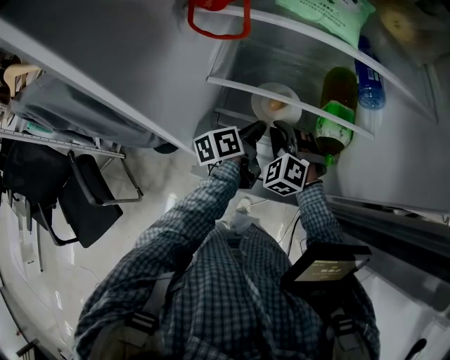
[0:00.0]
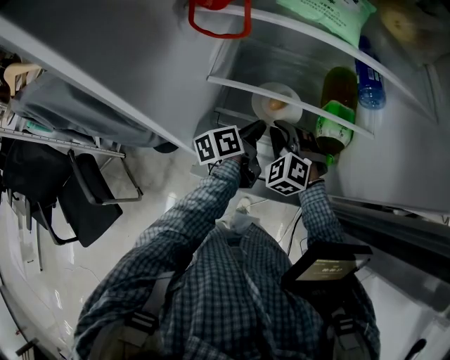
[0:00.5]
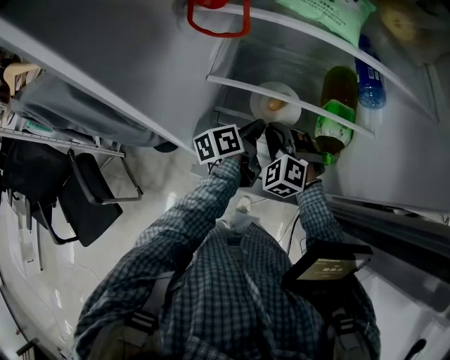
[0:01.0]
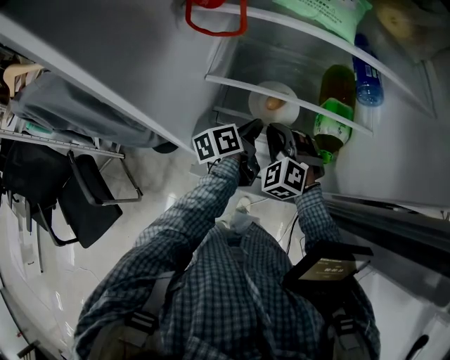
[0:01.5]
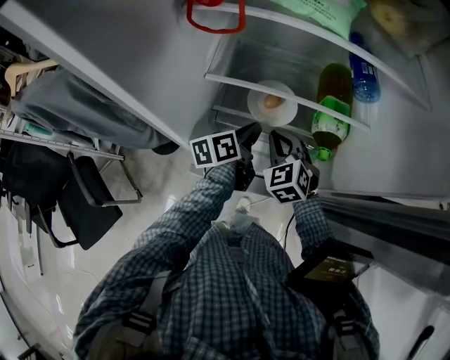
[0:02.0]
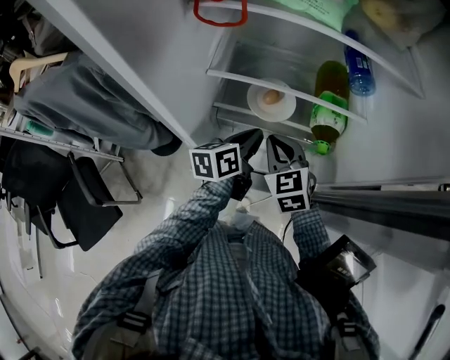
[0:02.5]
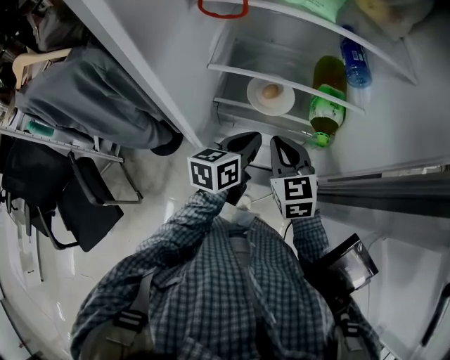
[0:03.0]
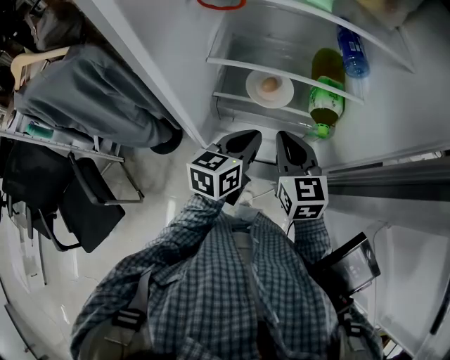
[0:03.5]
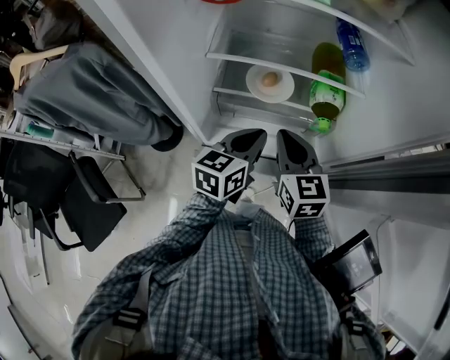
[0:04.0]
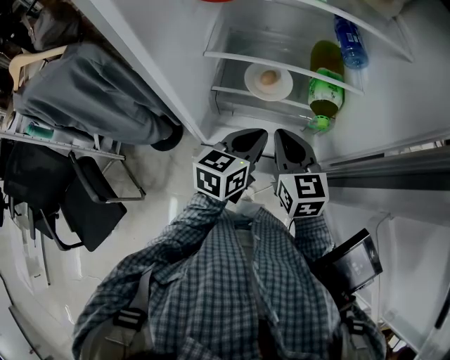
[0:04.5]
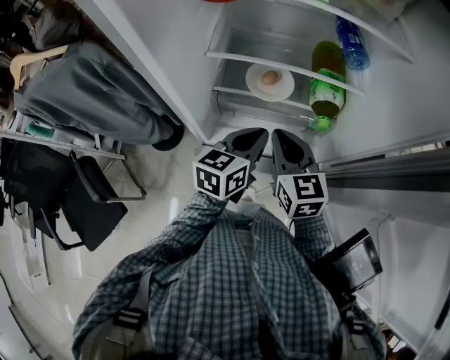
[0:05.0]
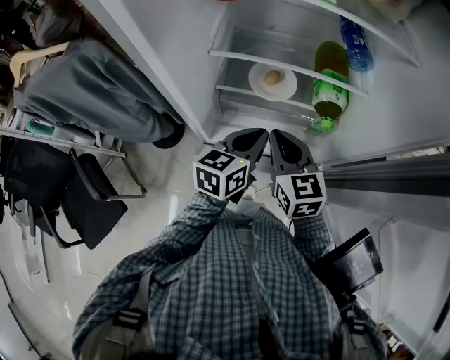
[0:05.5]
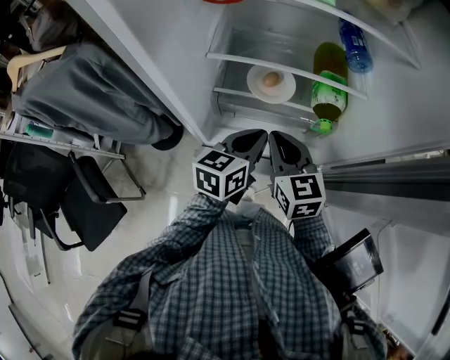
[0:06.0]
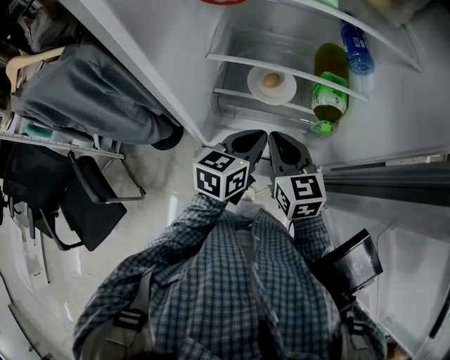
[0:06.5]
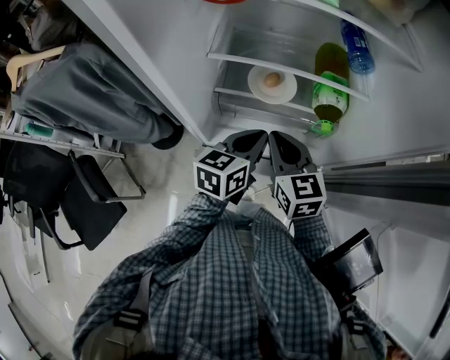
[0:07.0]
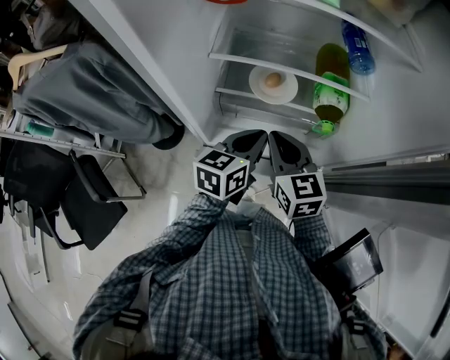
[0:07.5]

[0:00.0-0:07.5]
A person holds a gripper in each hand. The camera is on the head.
0:00.0 to 0:02.0: The right gripper turns by about 30 degrees.
0:02.0 to 0:04.0: The right gripper changes place by about 10 cm, and changes its angle by approximately 40 degrees.

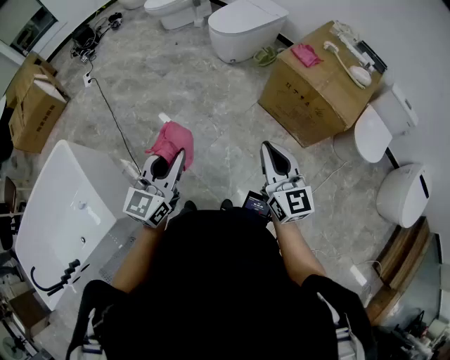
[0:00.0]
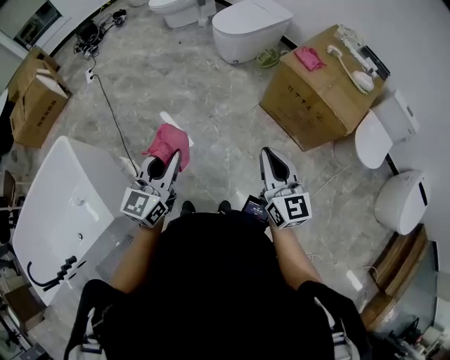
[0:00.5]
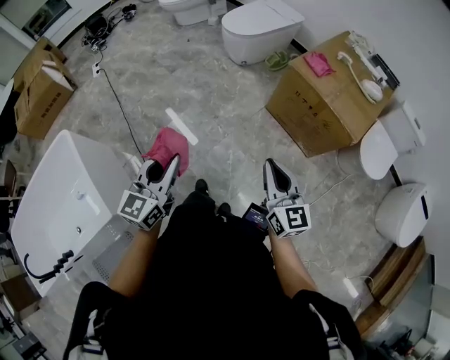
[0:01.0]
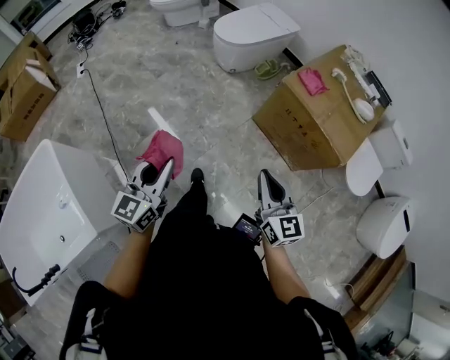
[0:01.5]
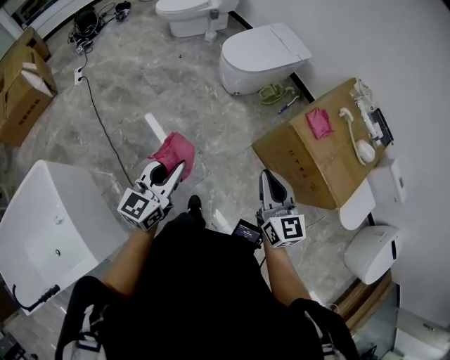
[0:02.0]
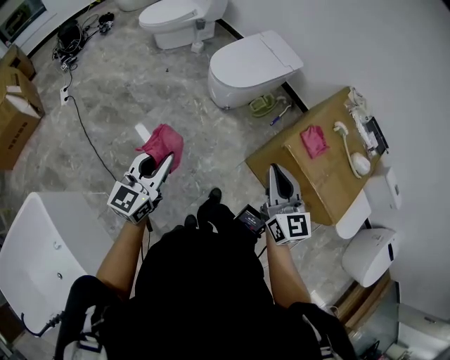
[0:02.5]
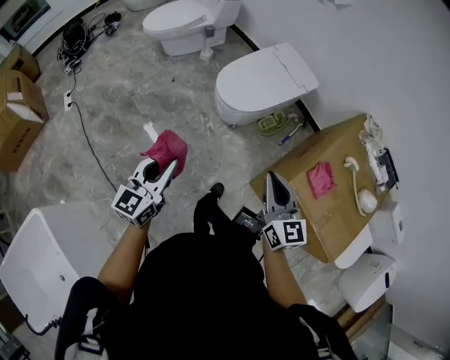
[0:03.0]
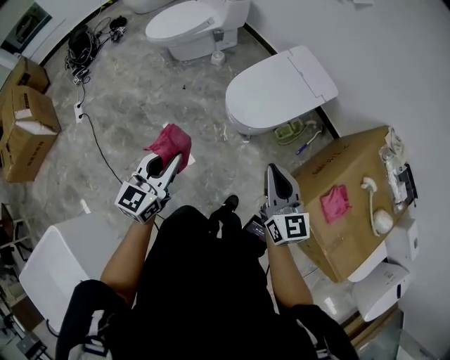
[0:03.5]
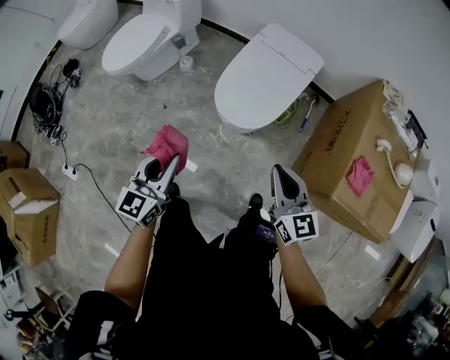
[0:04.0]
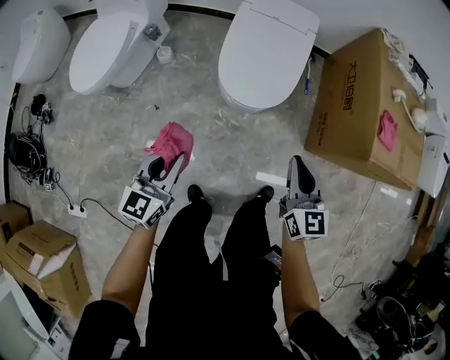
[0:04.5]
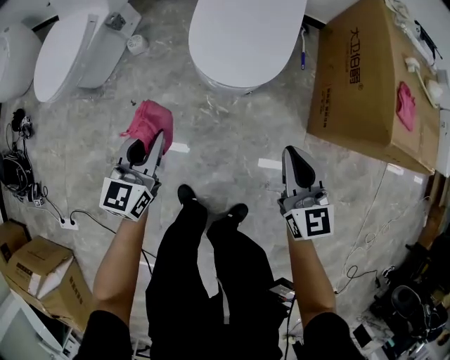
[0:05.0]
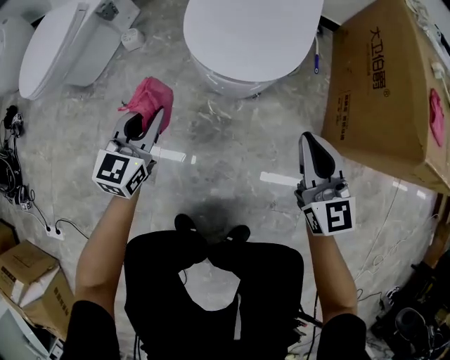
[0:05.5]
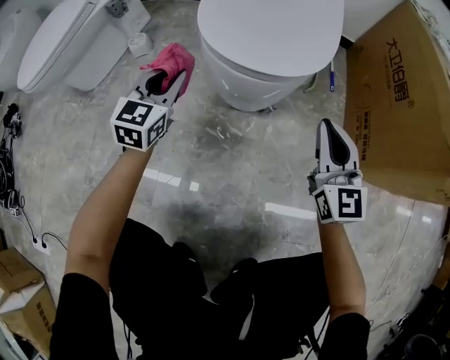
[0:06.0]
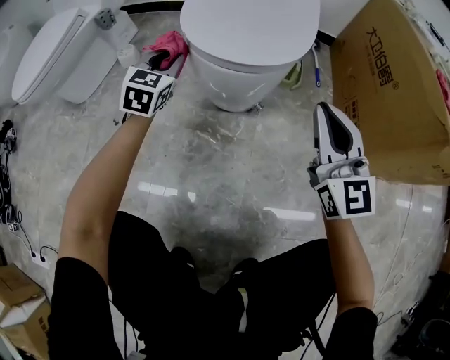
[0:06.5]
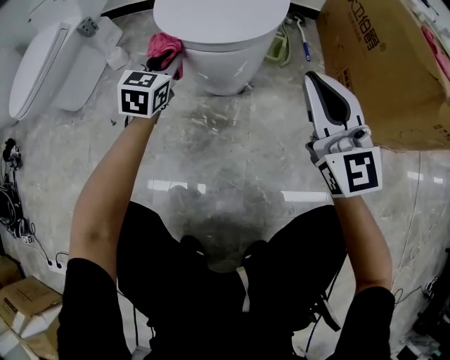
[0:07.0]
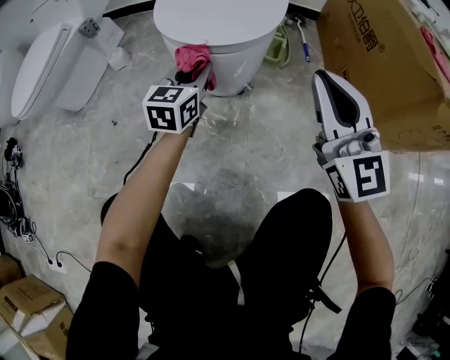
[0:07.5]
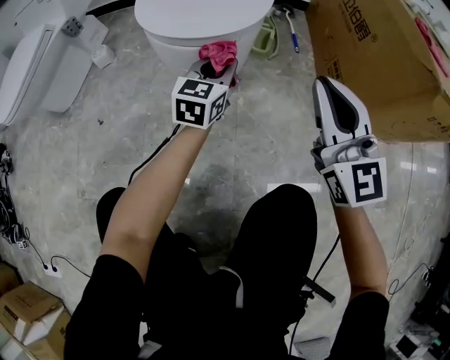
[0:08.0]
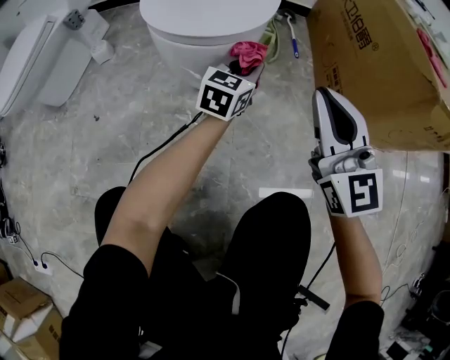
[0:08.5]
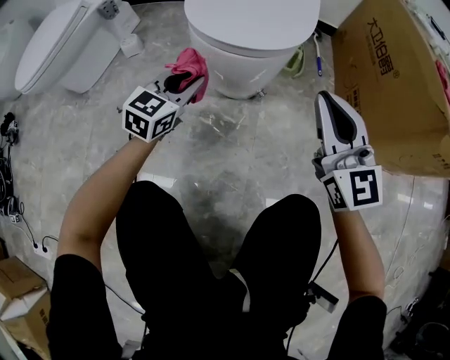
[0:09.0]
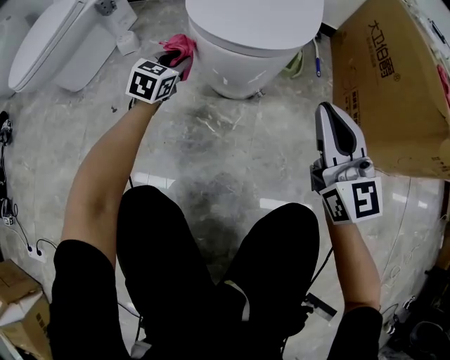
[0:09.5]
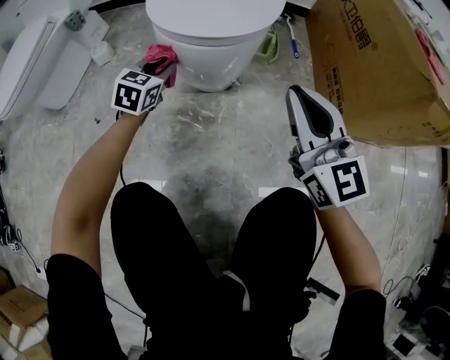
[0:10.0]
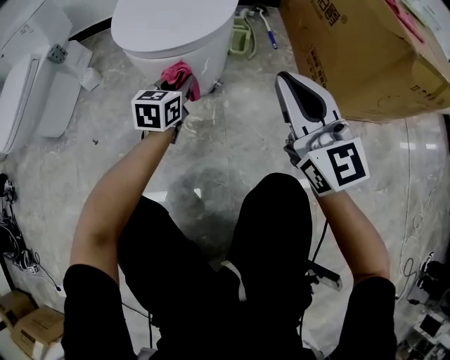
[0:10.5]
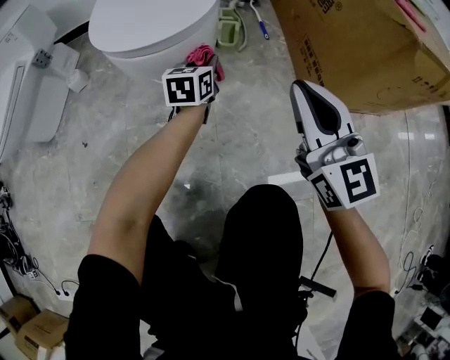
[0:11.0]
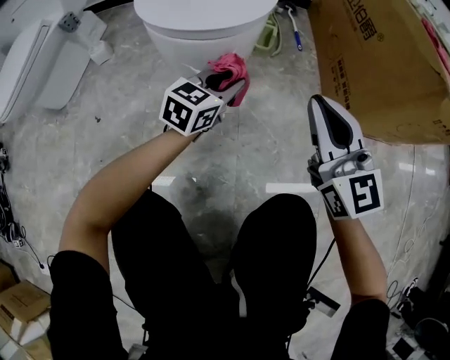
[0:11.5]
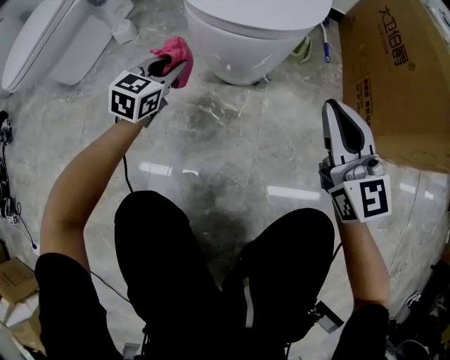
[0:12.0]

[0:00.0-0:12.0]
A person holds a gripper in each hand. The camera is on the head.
0:00.0 to 0:02.0: The grippers both shift forward by some 30 cm.
0:02.0 to 0:04.0: The pair of grippers is taken forward, roughly 50 cm. The left gripper swivels some 20 degrees.
0:04.0 to 0:06.0: The left gripper goes roughly 50 cm downward and forward, and changes its angle by about 20 degrees. Meanwhile the right gripper heads downward, covering approximately 40 cm, and rotates about 30 degrees.
0:06.0 to 0:08.0: The right gripper goes some 10 cm upward and backward. Meanwhile the left gripper is displaced to the right by roughly 25 cm.
0:08.0 to 0:10.0: The right gripper travels to the left by approximately 5 cm. The left gripper goes left and right, roughly 30 cm each way, reversing 2 times.
0:10.0 to 0:12.0: The right gripper goes to the right and returns, about 10 cm each way; the left gripper reaches about 25 cm to the right, then returns.

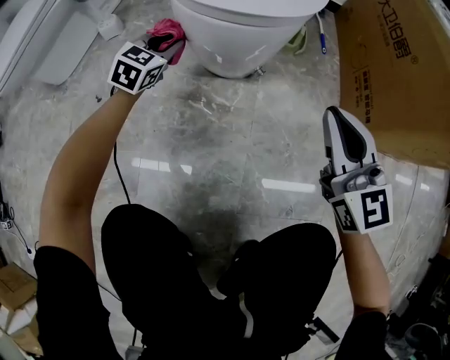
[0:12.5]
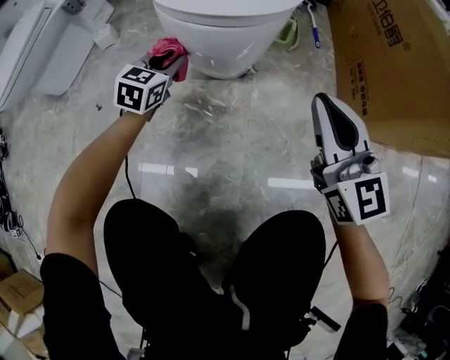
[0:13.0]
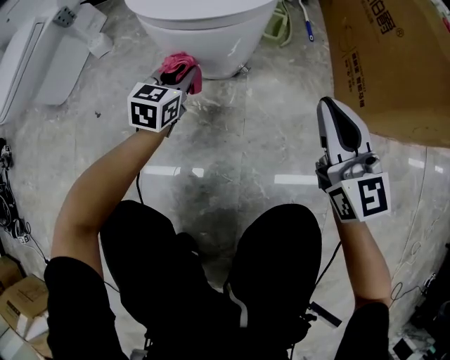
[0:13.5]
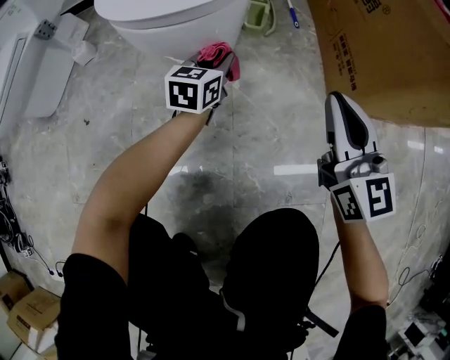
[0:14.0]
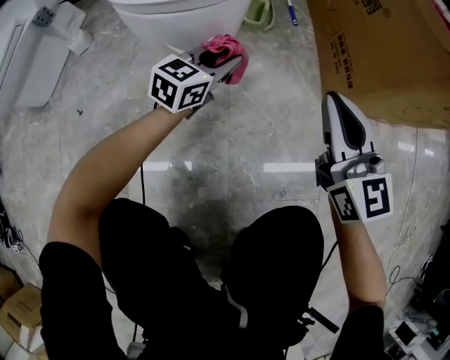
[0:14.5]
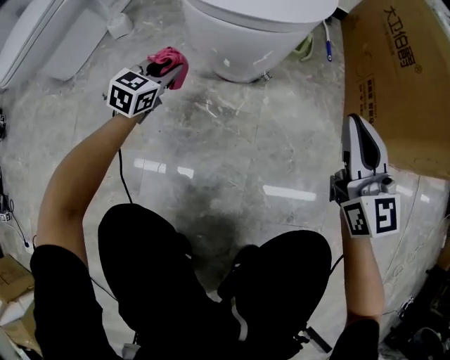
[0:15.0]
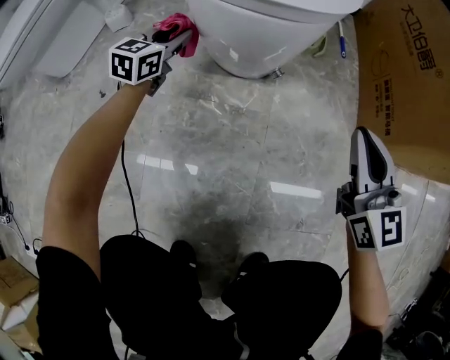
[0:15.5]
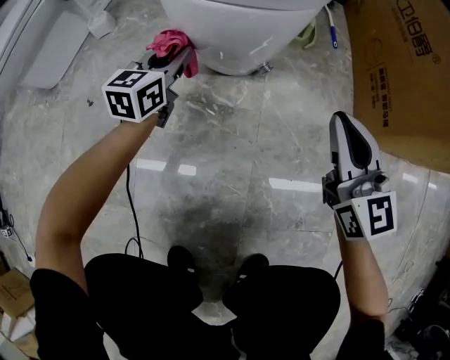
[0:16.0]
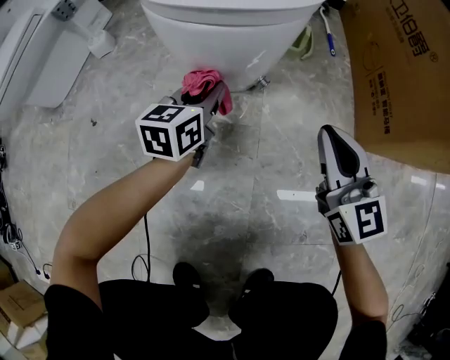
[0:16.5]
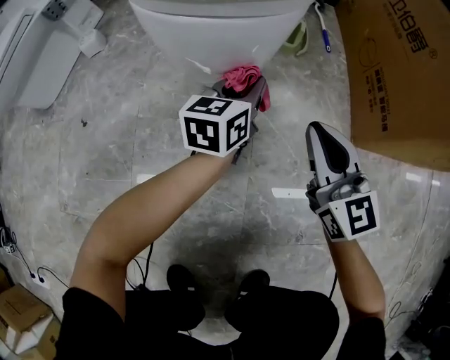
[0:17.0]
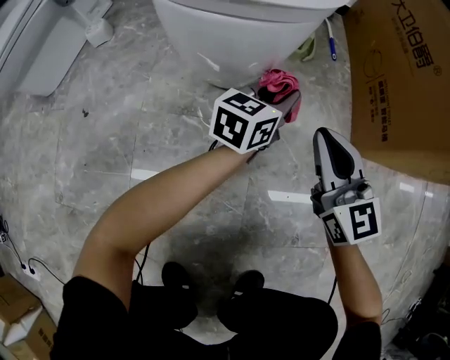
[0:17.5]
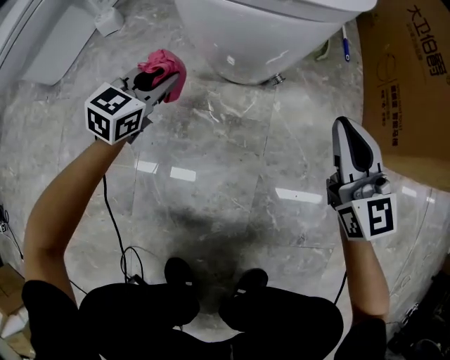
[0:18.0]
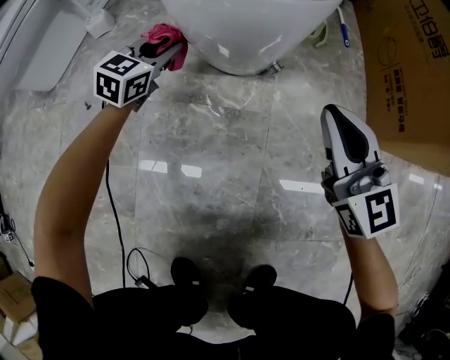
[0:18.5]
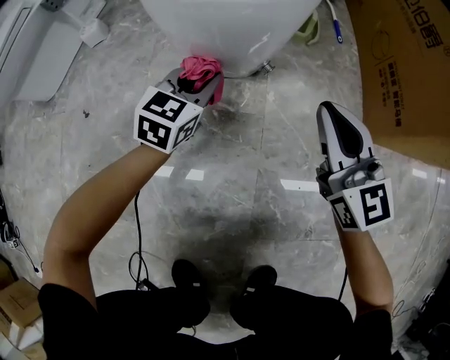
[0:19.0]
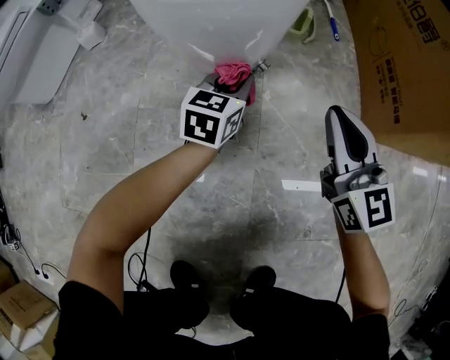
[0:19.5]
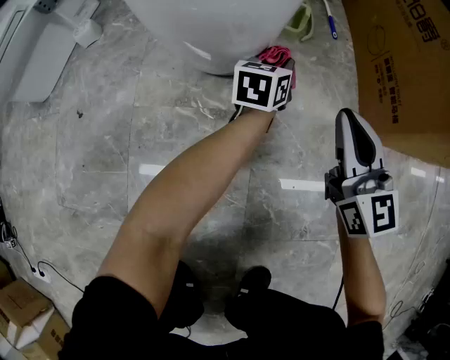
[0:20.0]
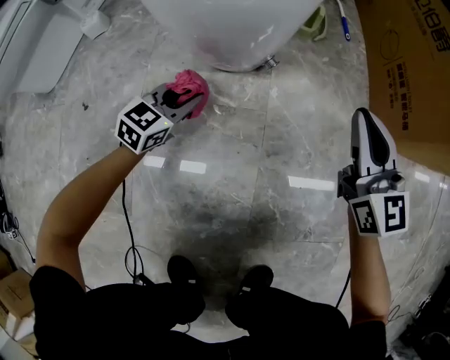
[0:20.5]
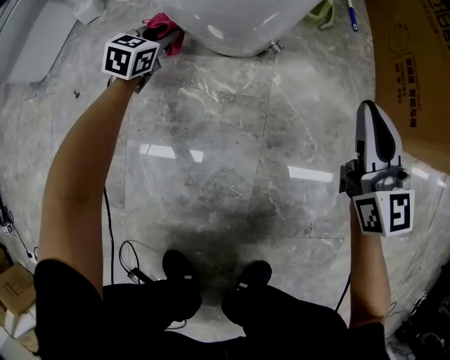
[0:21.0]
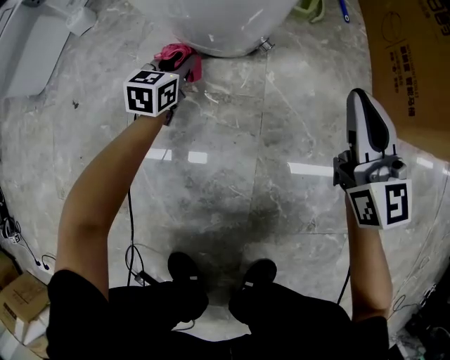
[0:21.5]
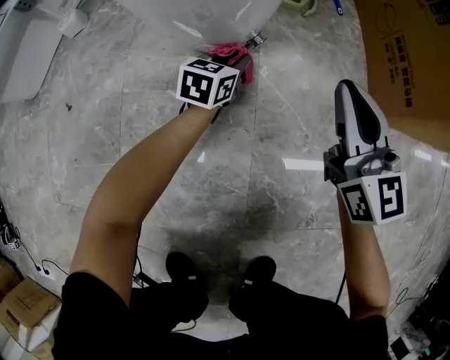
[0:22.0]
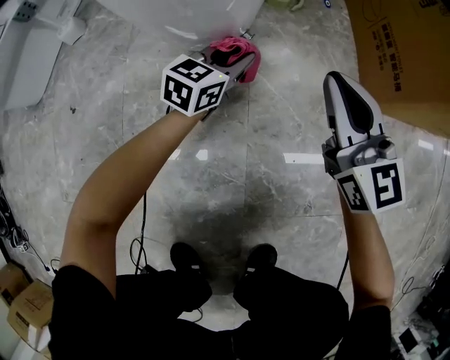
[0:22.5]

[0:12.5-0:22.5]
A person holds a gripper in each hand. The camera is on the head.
0:12.5 to 0:14.5: The right gripper is displaced to the right by about 10 cm. The left gripper heads to the right, covering about 25 cm, and changes its angle by some 30 degrees.
0:14.5 to 0:16.5: The left gripper goes some 15 cm to the left, and swivels approximately 30 degrees. The right gripper is displaced downward and to the left by some 10 cm.
0:16.5 to 0:18.5: The left gripper moves to the left and forward, about 15 cm, and swivels roughly 30 degrees.
0:18.5 to 0:20.5: The right gripper moves to the right, roughly 10 cm, while the left gripper travels backward and downward by roughly 10 cm, and travels to the right and back again, roughly 30 cm each way.
0:20.5 to 0:22.5: The left gripper travels to the right and forward by roughly 15 cm.
